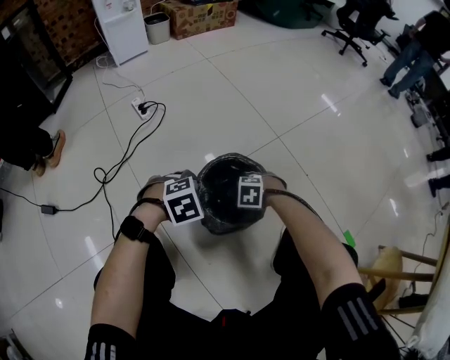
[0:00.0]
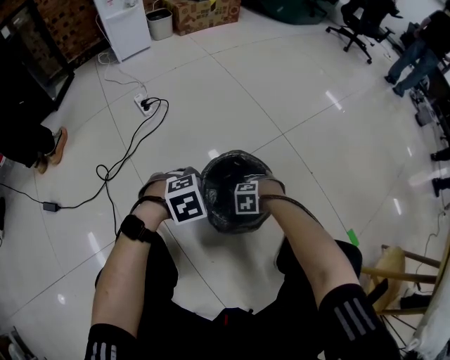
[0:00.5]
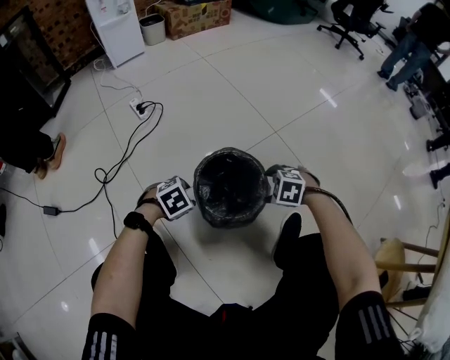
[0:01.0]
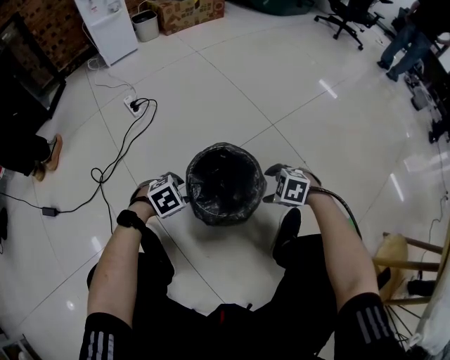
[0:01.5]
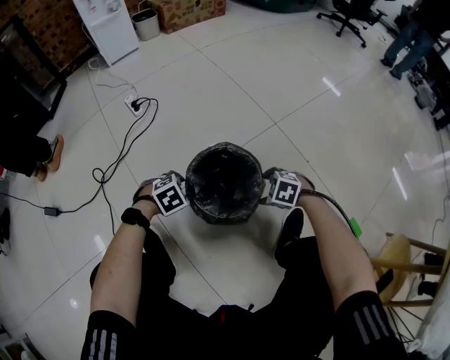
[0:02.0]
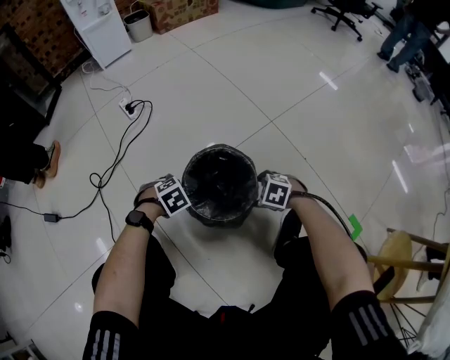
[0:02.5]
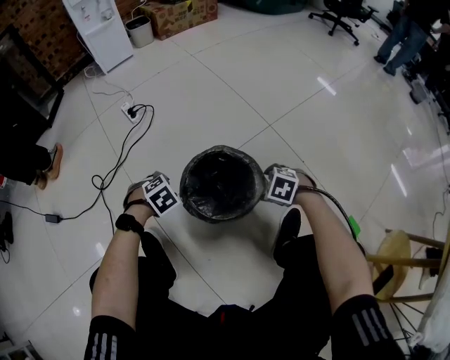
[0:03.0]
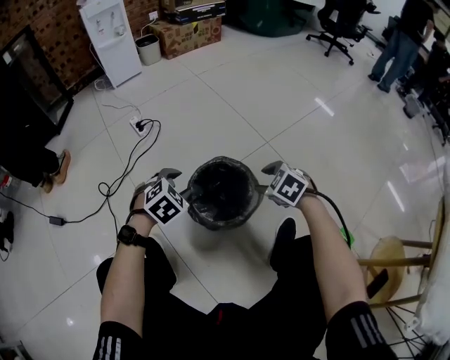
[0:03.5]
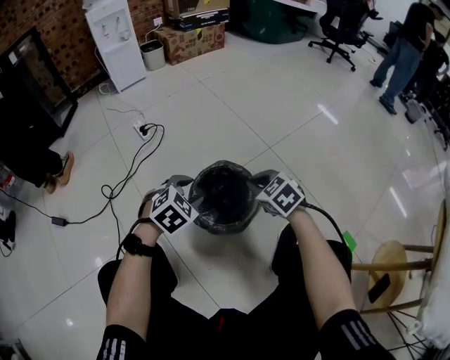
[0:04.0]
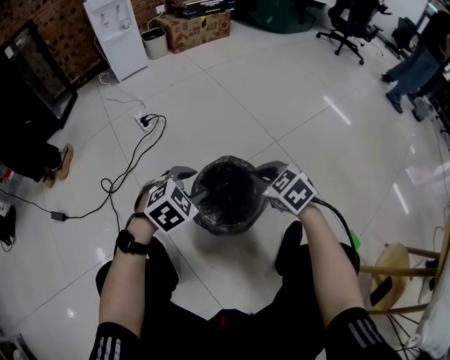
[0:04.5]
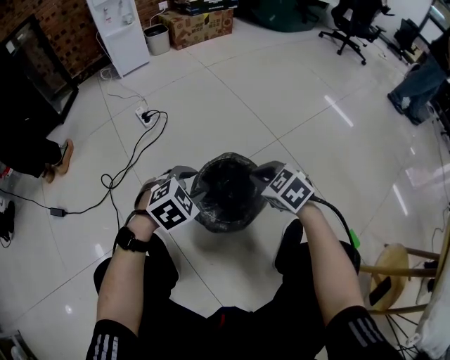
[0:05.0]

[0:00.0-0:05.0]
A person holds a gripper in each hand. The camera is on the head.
0:00.0 to 0:02.5: The right gripper goes up and down, approximately 10 cm each way, reversing 2 times. Meanwhile the left gripper moves downward, approximately 10 cm.
0:02.5 to 0:05.0: Both grippers move upward, some 20 cm. The right gripper swivels roughly 30 degrees, and closes its fingers, while the left gripper turns by about 30 degrees.

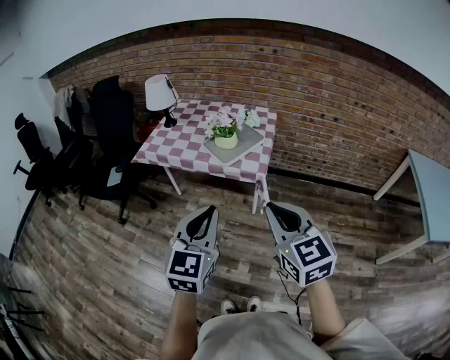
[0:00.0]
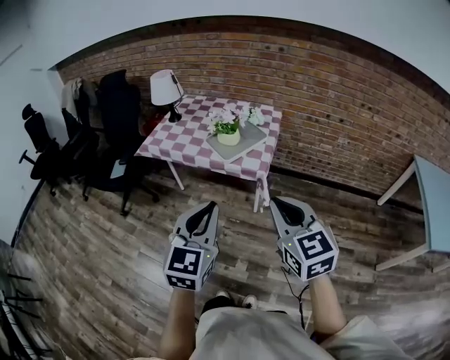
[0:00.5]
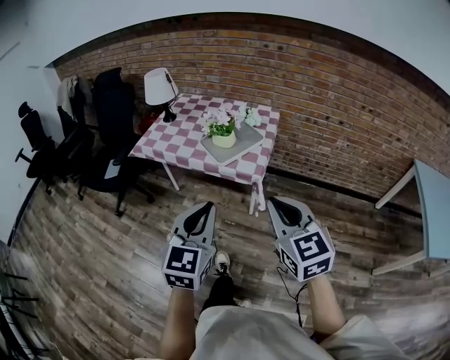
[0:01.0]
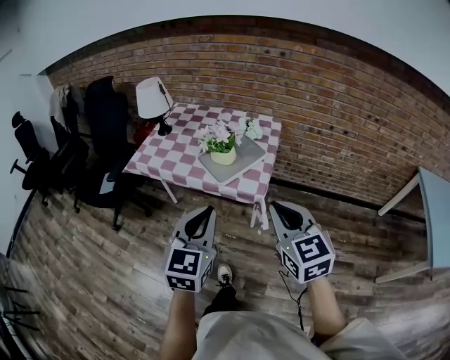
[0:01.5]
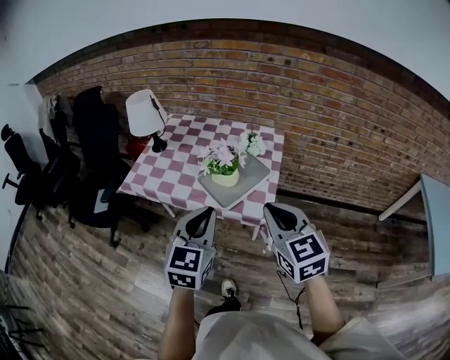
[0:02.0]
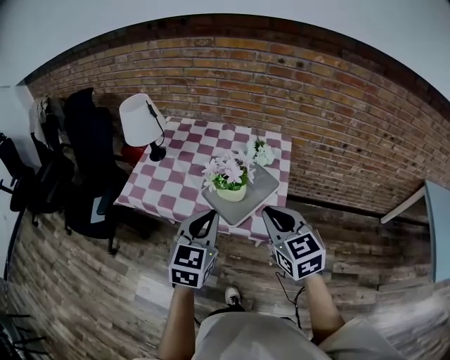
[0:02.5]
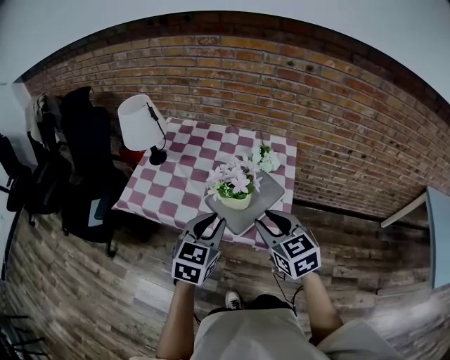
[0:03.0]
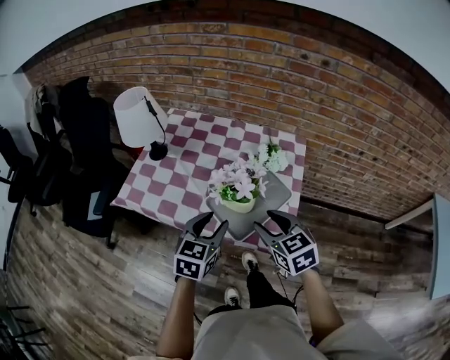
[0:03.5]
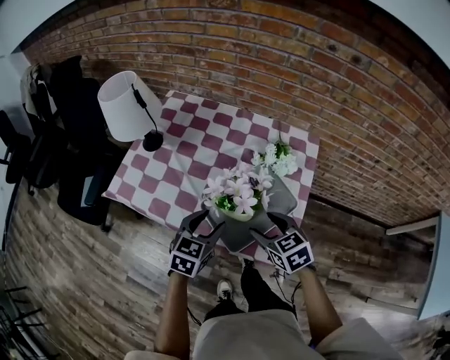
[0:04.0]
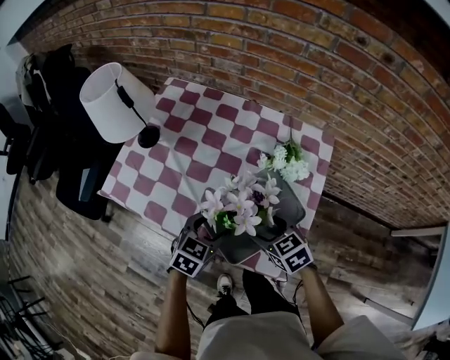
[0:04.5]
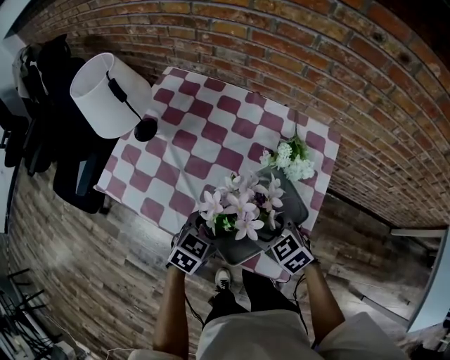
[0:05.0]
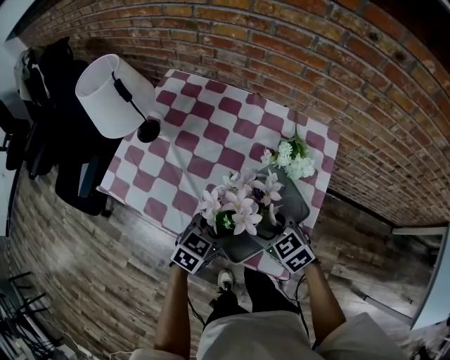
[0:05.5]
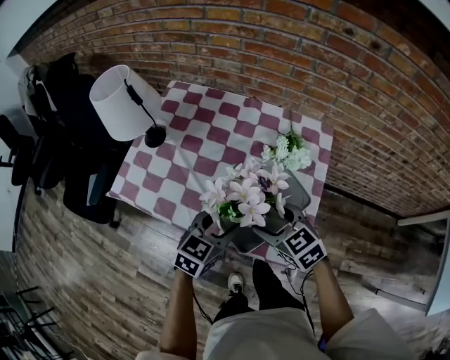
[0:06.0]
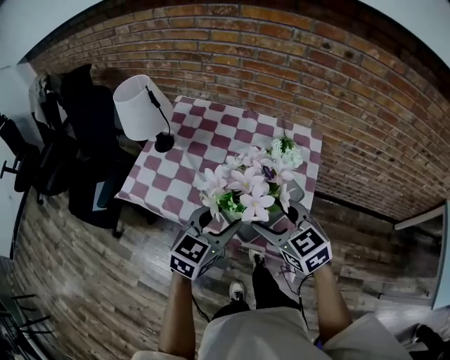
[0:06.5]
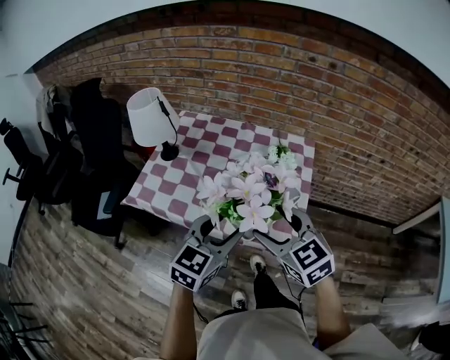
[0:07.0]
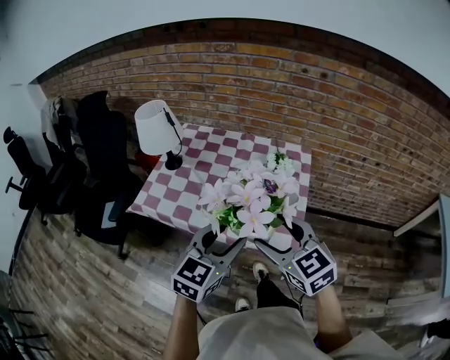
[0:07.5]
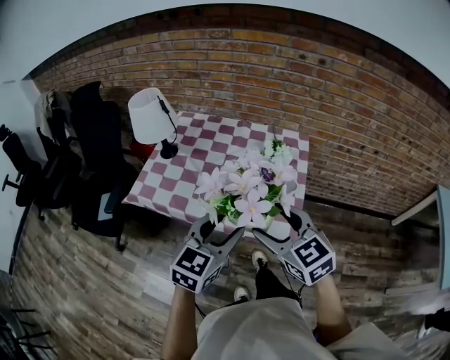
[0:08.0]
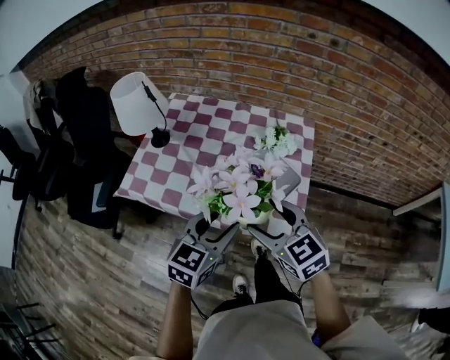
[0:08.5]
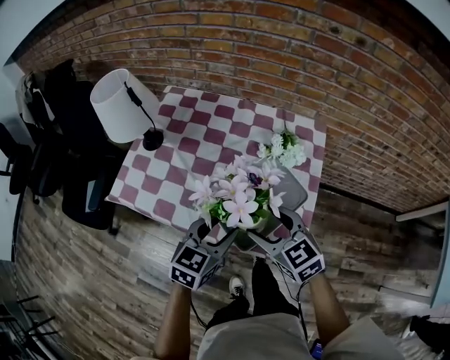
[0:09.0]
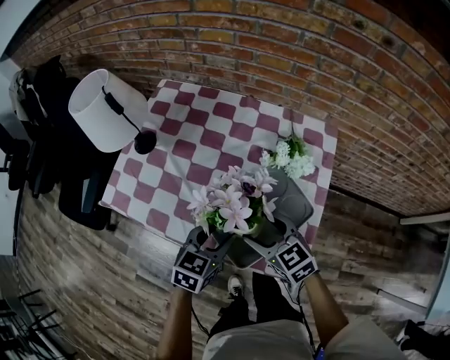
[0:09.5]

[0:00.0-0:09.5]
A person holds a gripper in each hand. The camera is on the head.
0:00.0 to 0:02.0: The grippers both shift forward by roughly 30 cm.
0:02.0 to 0:04.0: Both grippers move forward and downward, some 35 cm. The left gripper rotates approximately 20 degrees, and opens up; the right gripper turns by roughly 30 degrees, and opens its fingers.
0:04.0 to 0:05.5: The grippers both shift downward by about 5 cm.
0:05.5 to 0:07.5: The grippers both shift upward and backward by roughly 30 cm. The right gripper swivels some 30 degrees; the left gripper changes its angle by roughly 30 degrees.
0:07.5 to 0:09.5: Both grippers move downward and forward, roughly 30 cm. The left gripper swivels about 30 degrees.

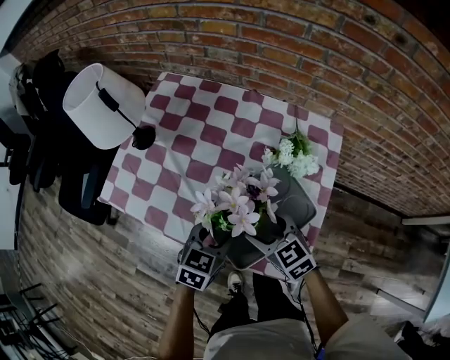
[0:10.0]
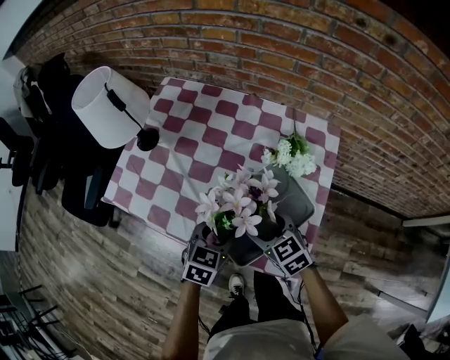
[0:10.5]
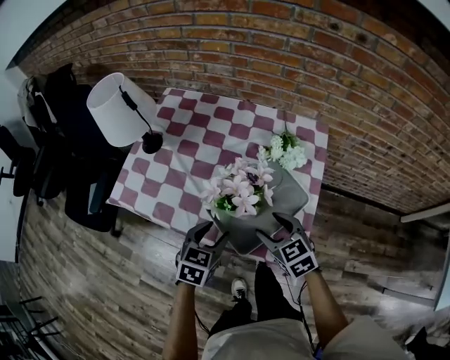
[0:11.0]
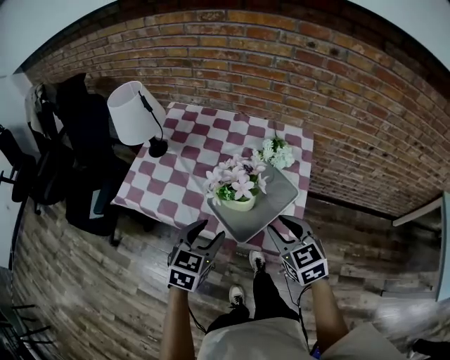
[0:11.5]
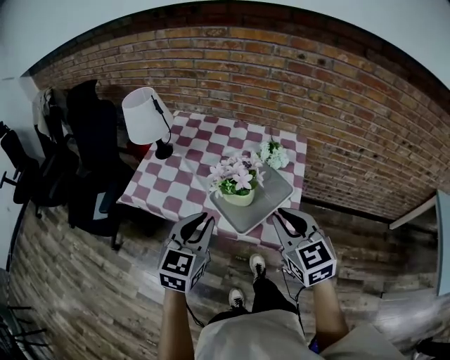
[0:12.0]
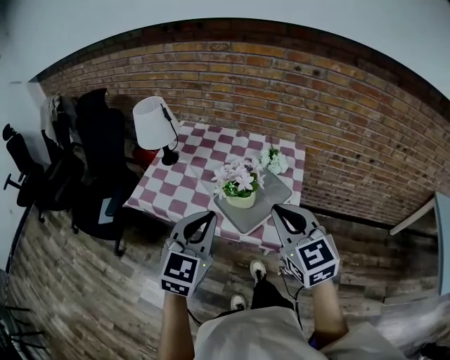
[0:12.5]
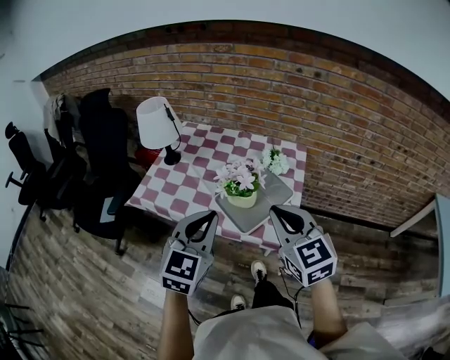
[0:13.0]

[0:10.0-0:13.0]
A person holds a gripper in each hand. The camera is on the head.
0:10.0 to 0:11.5: The left gripper is displaced upward and backward by about 15 cm, while the right gripper goes about 20 cm upward, backward and to the right, and closes up.
0:11.5 to 0:13.0: Both grippers move upward and backward, some 20 cm. The left gripper rotates approximately 20 degrees, and closes its fingers; the right gripper closes.

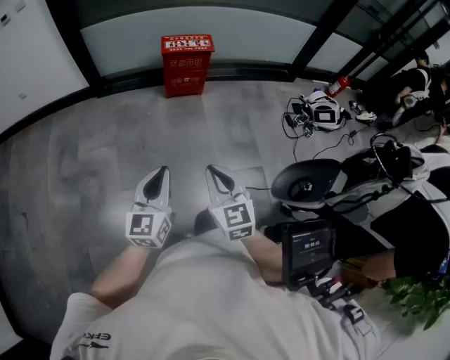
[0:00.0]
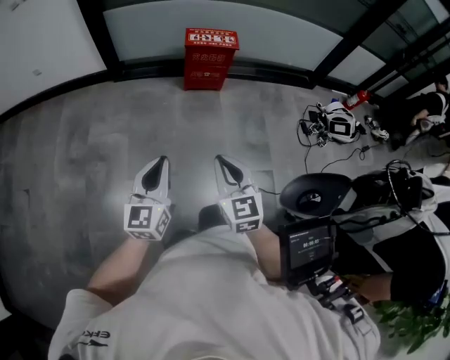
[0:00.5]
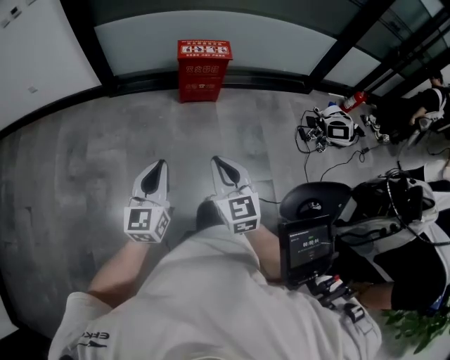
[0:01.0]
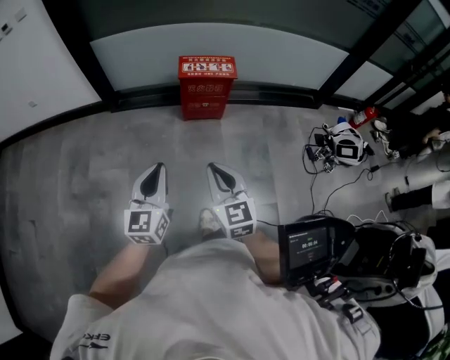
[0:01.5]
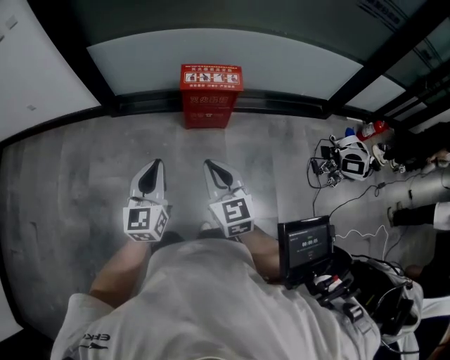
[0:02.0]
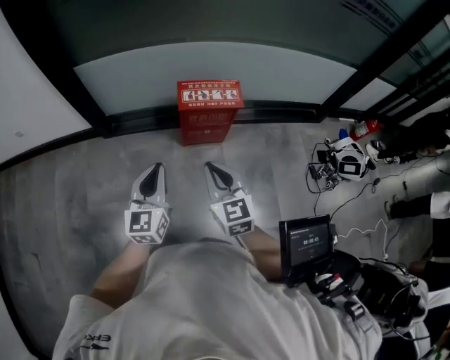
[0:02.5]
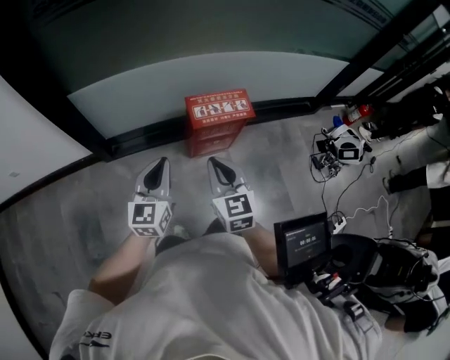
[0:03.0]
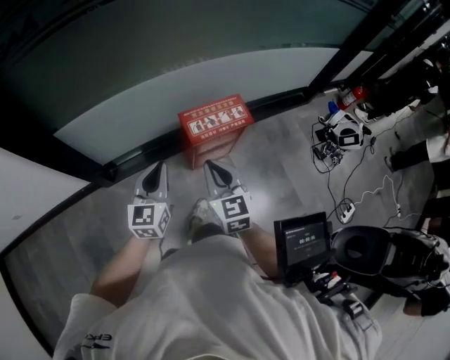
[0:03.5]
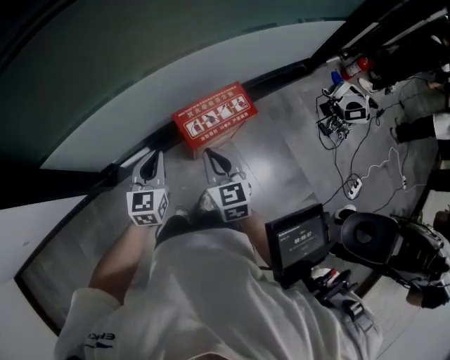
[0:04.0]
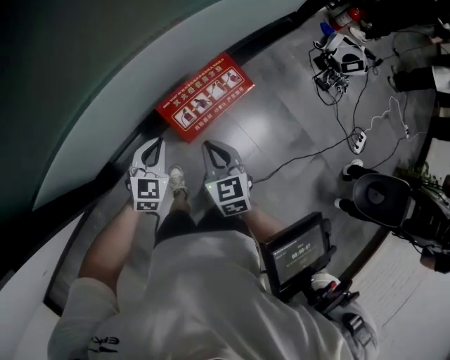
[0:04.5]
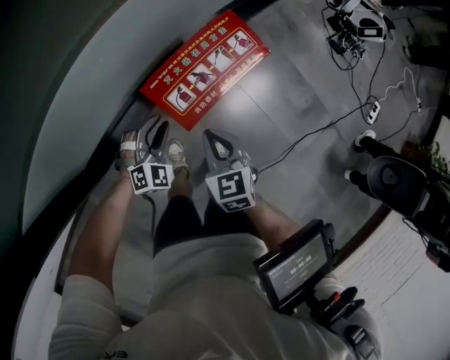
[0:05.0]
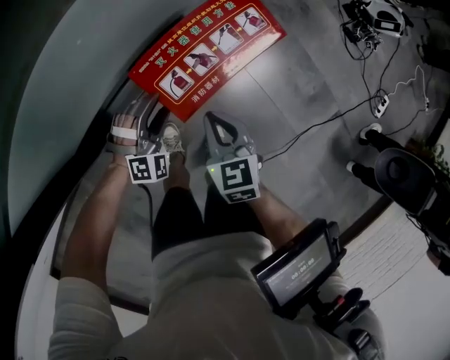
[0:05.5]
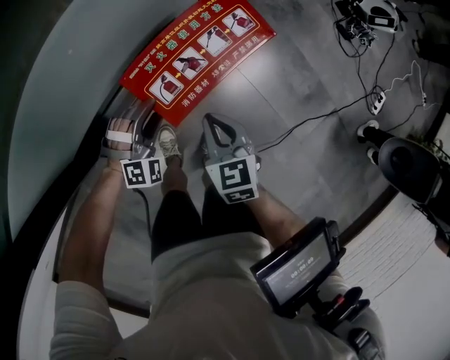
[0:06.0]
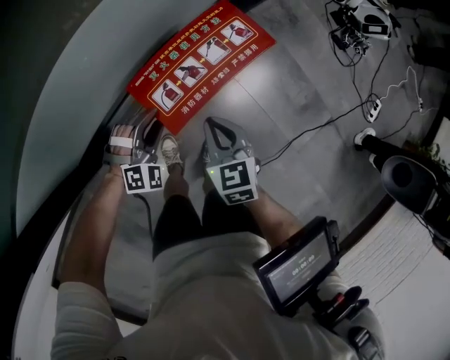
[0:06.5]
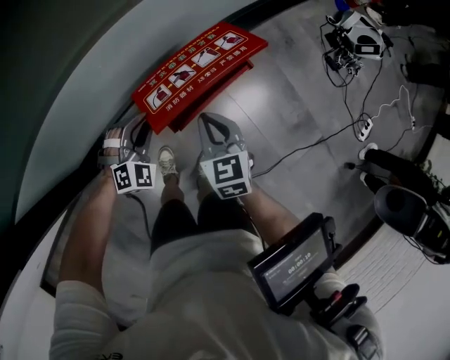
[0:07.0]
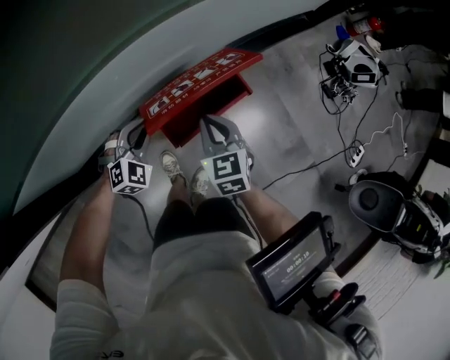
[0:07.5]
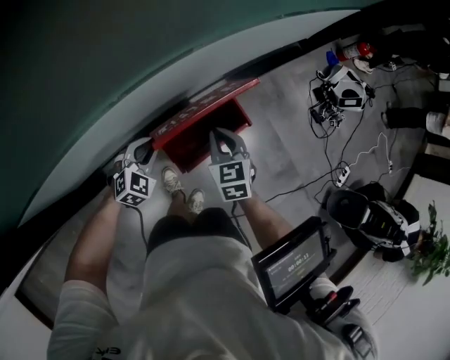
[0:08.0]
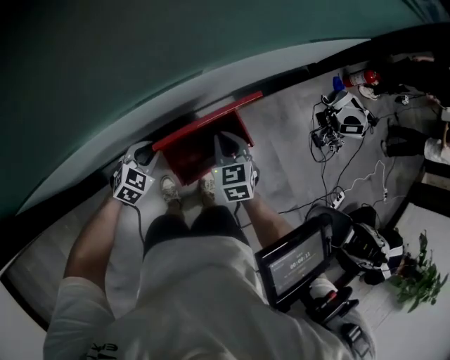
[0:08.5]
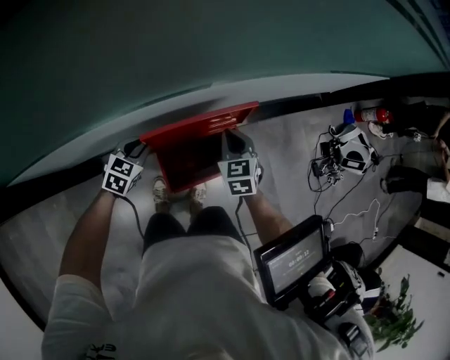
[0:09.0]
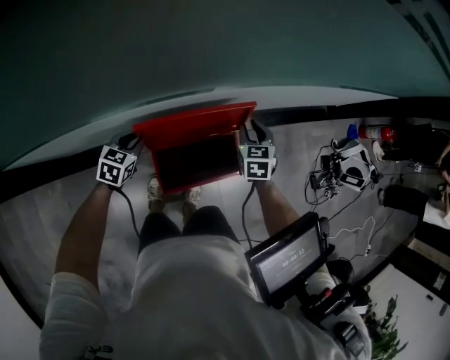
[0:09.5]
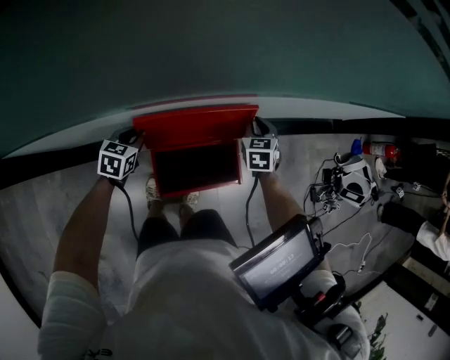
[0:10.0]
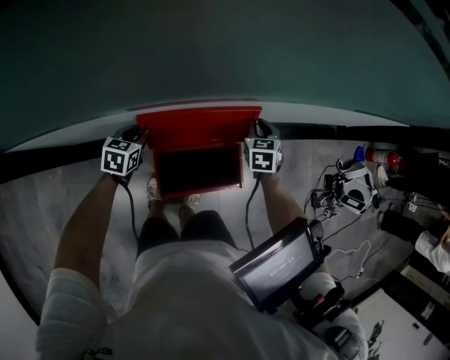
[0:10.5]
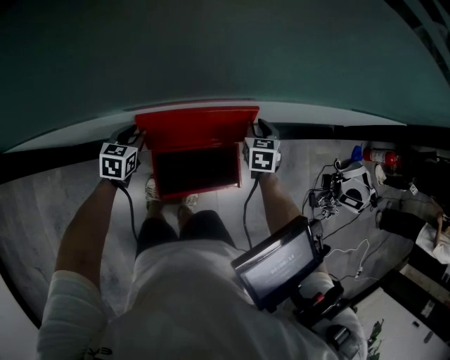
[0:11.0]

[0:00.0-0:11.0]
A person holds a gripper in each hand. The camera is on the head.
0:00.0 to 0:02.0: The two grippers go about 40 cm forward.
0:02.0 to 0:03.5: The grippers both shift forward and to the left by roughly 40 cm. The left gripper swivels about 20 degrees. Meanwhile the right gripper changes its angle by approximately 20 degrees.
0:03.5 to 0:05.5: The grippers both shift downward and forward by approximately 40 cm. The left gripper twists approximately 70 degrees clockwise, seen from behind, and opens; the right gripper rotates about 30 degrees.
0:05.5 to 0:07.5: The grippers both shift upward and forward by about 15 cm. The left gripper rotates about 30 degrees, and closes its fingers.
0:07.5 to 0:09.0: The left gripper shifts about 10 cm forward and to the left, and rotates around the line of its fingers by some 50 degrees, counterclockwise from behind; the right gripper travels forward by about 15 cm.
0:09.0 to 0:11.0: The right gripper goes approximately 15 cm forward, to the right and downward, and opens. The left gripper ends up approximately 5 cm from where it was, and changes its angle by some 30 degrees.
